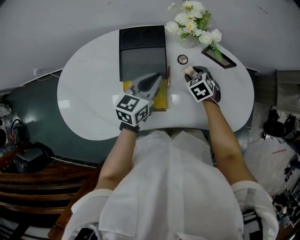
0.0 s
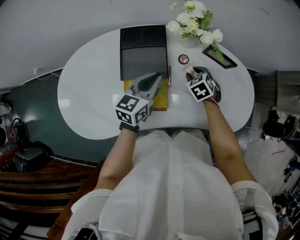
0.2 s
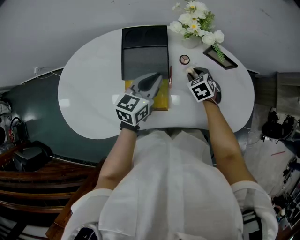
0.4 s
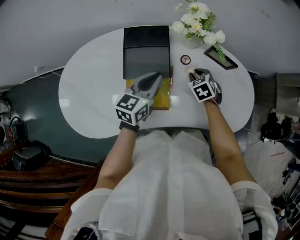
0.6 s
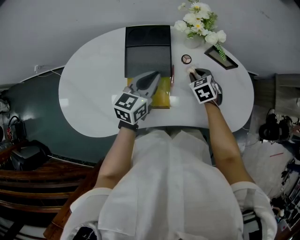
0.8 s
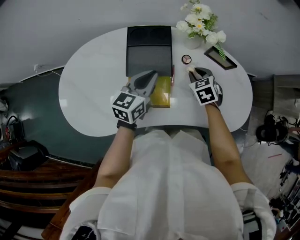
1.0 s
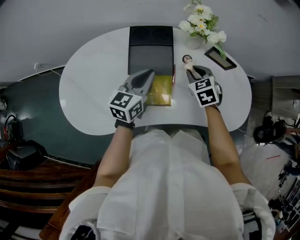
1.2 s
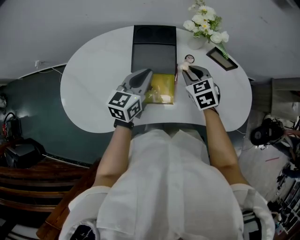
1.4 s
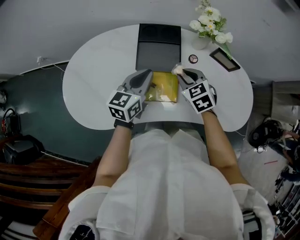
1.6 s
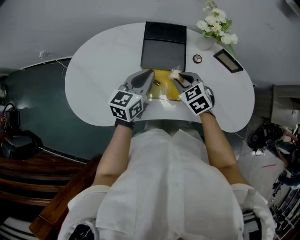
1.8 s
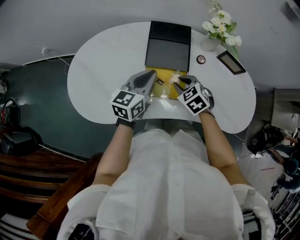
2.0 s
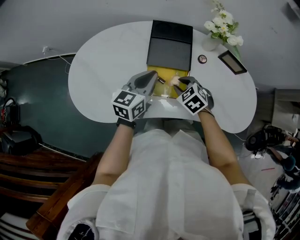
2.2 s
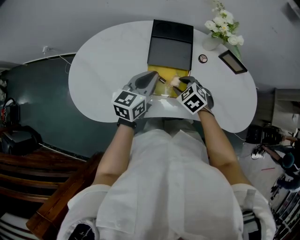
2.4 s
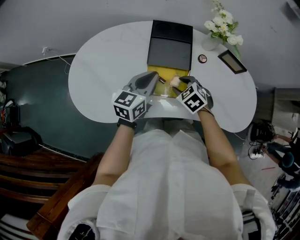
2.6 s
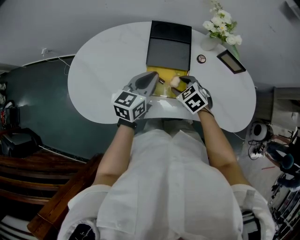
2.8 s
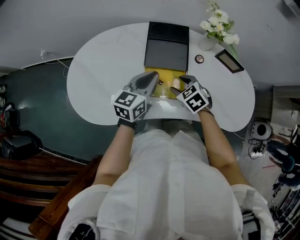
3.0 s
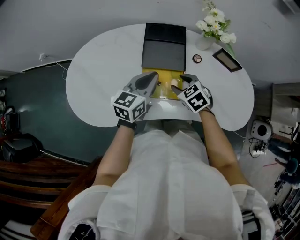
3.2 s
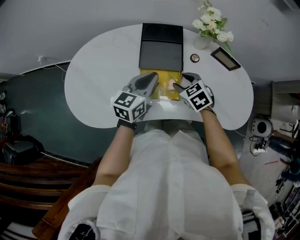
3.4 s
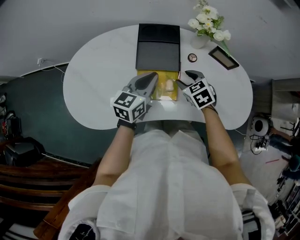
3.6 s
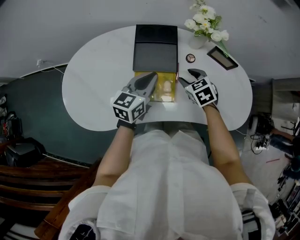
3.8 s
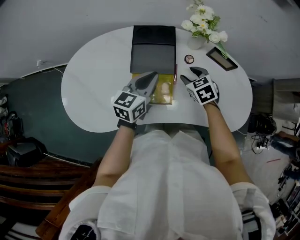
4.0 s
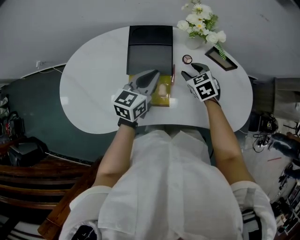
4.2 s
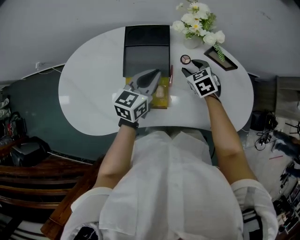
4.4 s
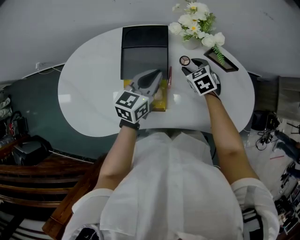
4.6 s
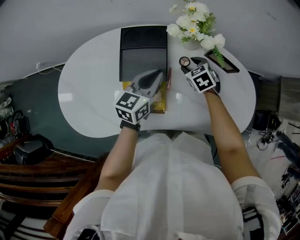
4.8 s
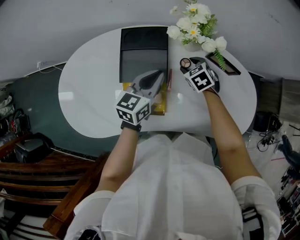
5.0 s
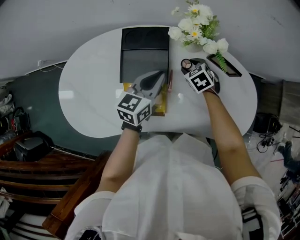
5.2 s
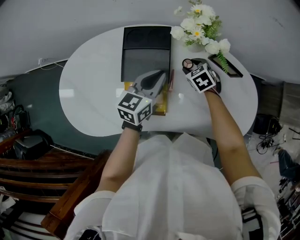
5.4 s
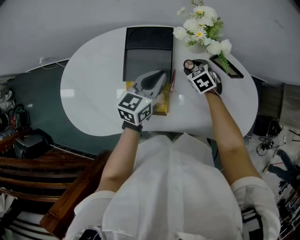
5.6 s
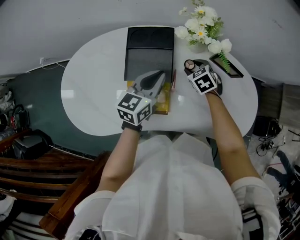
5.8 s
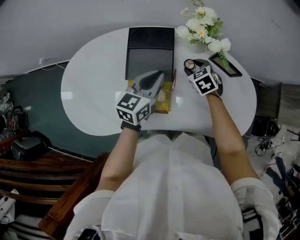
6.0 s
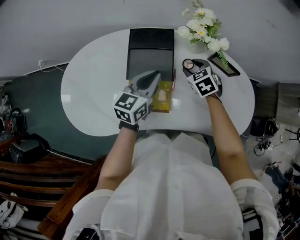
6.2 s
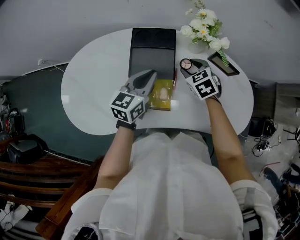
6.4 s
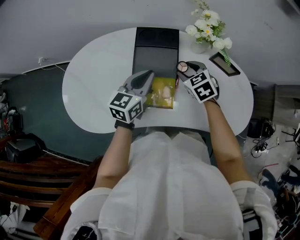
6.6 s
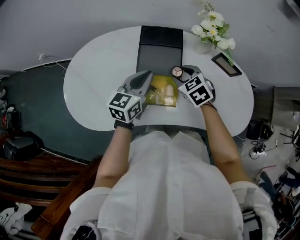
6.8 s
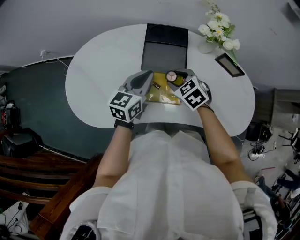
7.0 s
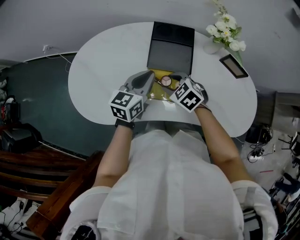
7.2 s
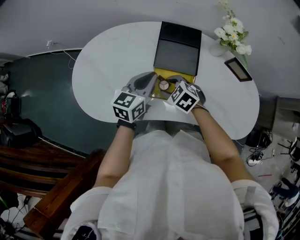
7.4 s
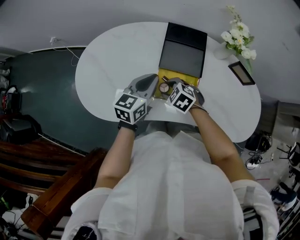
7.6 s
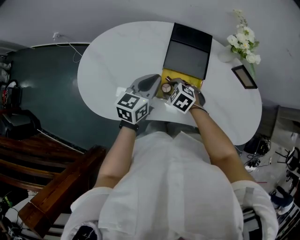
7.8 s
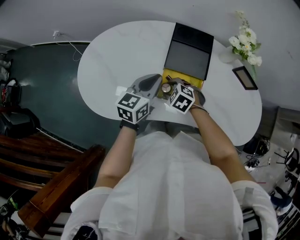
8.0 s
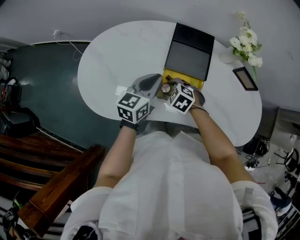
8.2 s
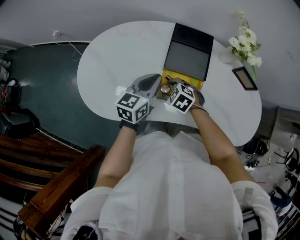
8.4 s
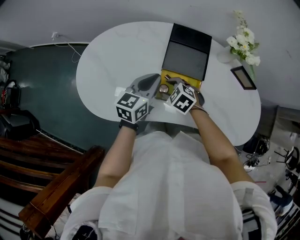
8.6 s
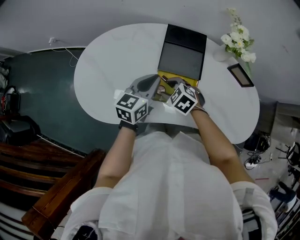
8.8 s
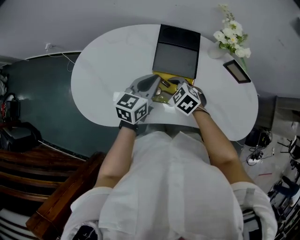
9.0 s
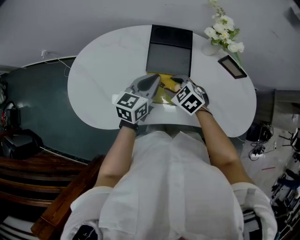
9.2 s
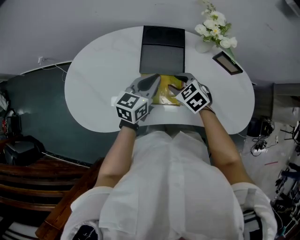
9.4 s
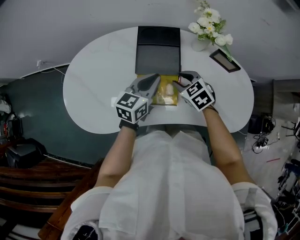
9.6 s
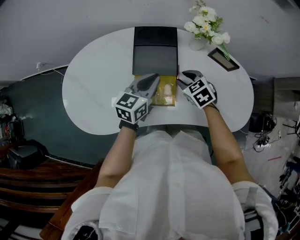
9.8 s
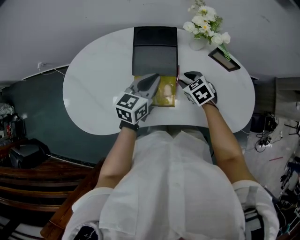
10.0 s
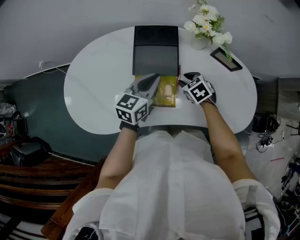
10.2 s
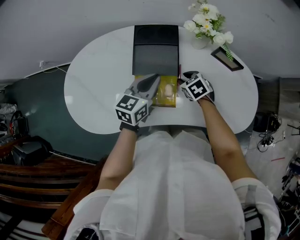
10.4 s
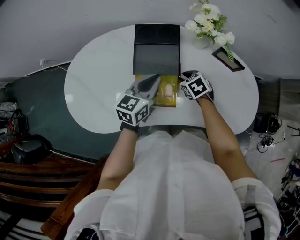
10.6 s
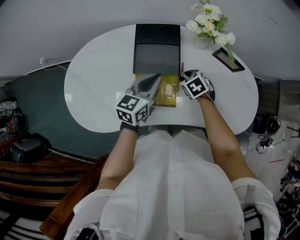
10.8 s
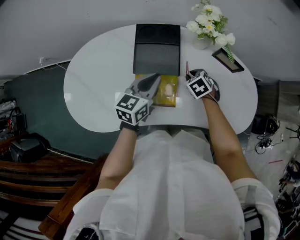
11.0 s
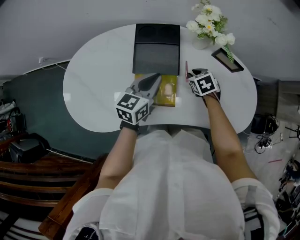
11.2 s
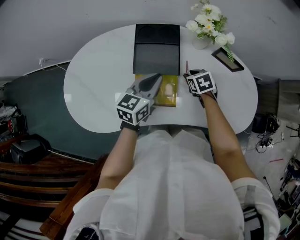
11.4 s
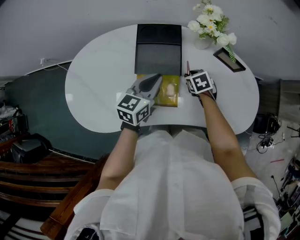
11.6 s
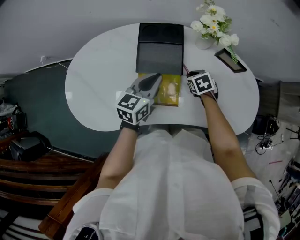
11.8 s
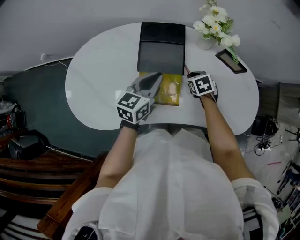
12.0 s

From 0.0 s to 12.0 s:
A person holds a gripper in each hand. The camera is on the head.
From 0.0 s to 1.6 s: The right gripper moves to the left, upward and backward, about 15 cm, and closes its fingers; the left gripper heads to the left and backward, covering some 10 cm.
From 1.6 s to 3.0 s: The right gripper goes about 5 cm downward and to the left, and opens its fingers.
From 3.0 s to 4.4 s: The right gripper heads to the right and forward, covering about 20 cm; the left gripper shifts roughly 10 cm to the right and forward.
From 6.0 s to 7.6 s: The right gripper shifts about 30 cm to the left and backward, and changes its angle by roughly 30 degrees. The left gripper shifts some 15 cm to the left.
From 7.6 s to 9.0 s: There are only small adjustments of the grippers.
From 9.0 s to 10.4 s: The right gripper goes approximately 15 cm to the right, and rotates about 30 degrees. The left gripper is displaced to the right by about 10 cm.
From 10.4 s to 12.0 s: The right gripper closes its fingers.

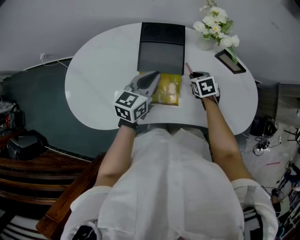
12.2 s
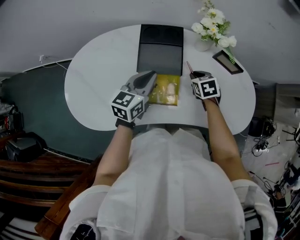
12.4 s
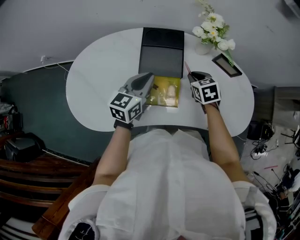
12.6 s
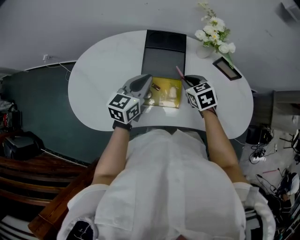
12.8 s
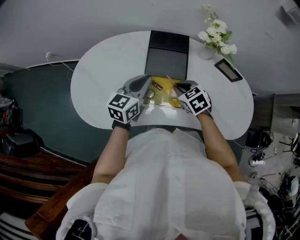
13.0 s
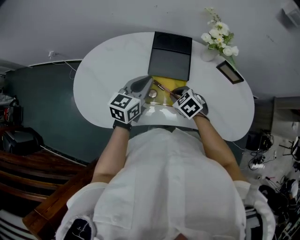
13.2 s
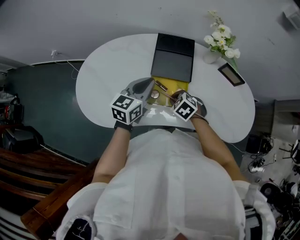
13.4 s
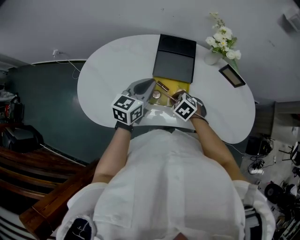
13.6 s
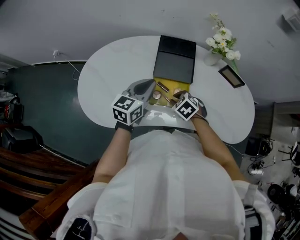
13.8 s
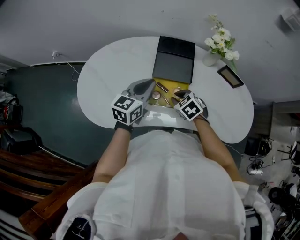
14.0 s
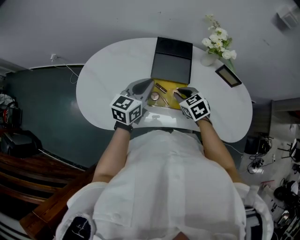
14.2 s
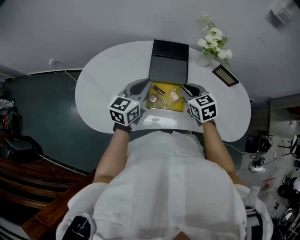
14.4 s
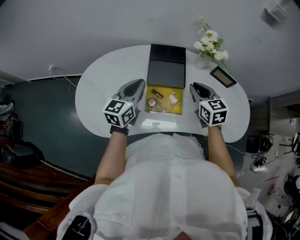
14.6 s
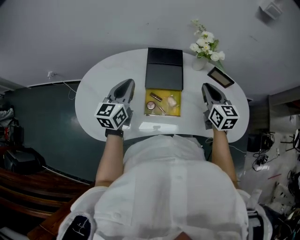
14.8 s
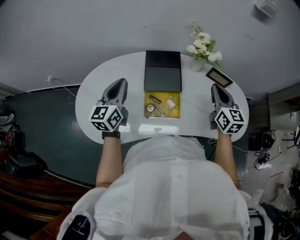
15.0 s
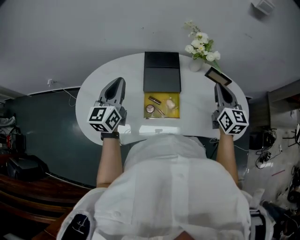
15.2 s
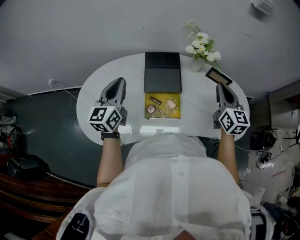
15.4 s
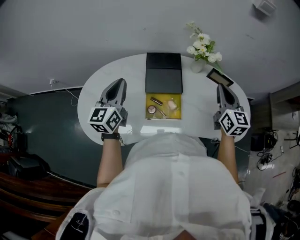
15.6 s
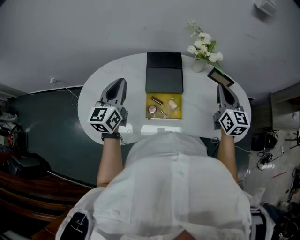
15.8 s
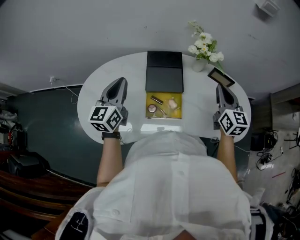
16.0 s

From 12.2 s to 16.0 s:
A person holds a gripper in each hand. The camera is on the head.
From 12.2 s to 13.4 s: The left gripper is displaced to the left by approximately 5 cm; the right gripper moves to the left and backward, some 20 cm, and swivels approximately 40 degrees.
From 13.4 s to 14.8 s: The right gripper is displaced upward and to the right by approximately 25 cm, and tilts its fingers approximately 50 degrees upward. Meanwhile the left gripper heads to the left and upward, covering approximately 10 cm.
From 14.8 s to 16.0 s: The right gripper is displaced to the right by about 5 cm.

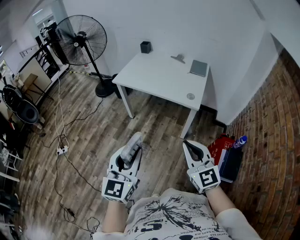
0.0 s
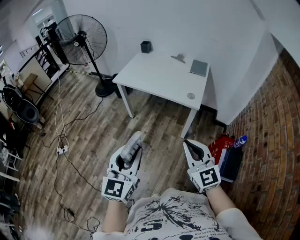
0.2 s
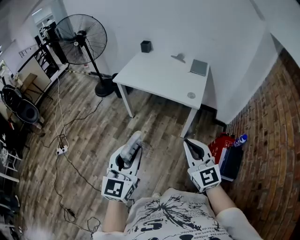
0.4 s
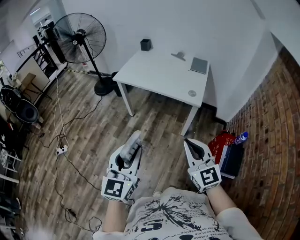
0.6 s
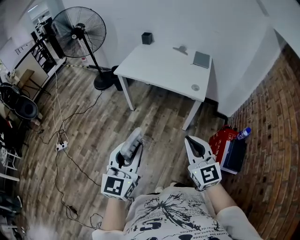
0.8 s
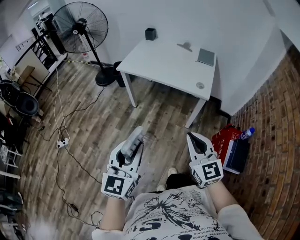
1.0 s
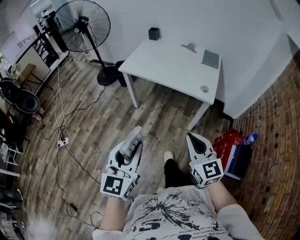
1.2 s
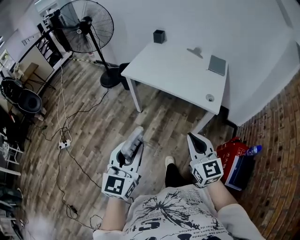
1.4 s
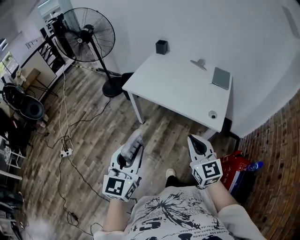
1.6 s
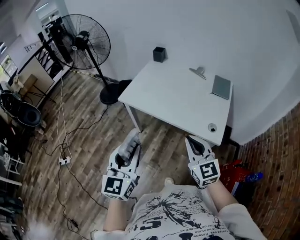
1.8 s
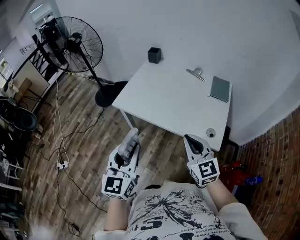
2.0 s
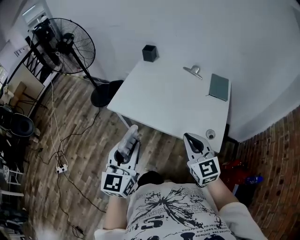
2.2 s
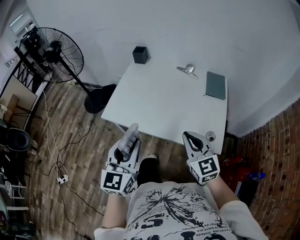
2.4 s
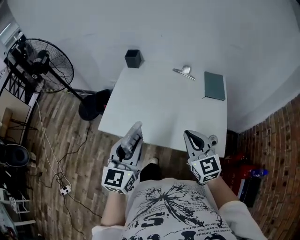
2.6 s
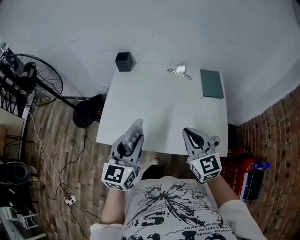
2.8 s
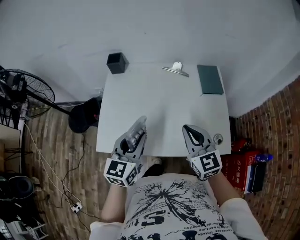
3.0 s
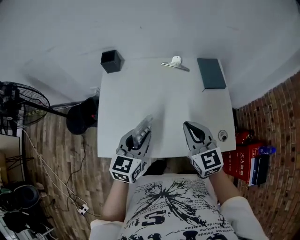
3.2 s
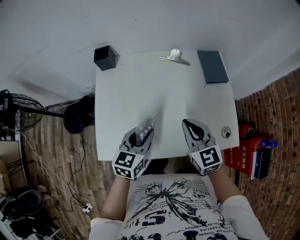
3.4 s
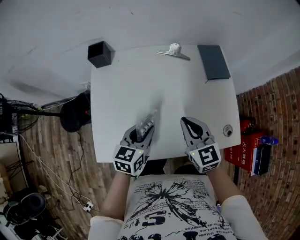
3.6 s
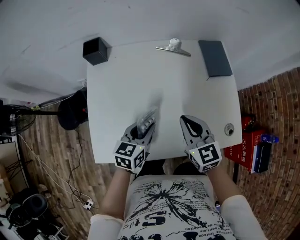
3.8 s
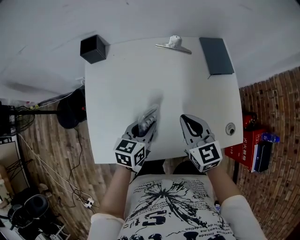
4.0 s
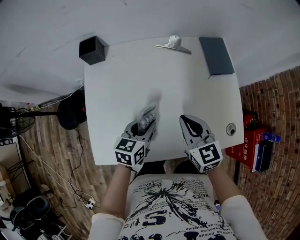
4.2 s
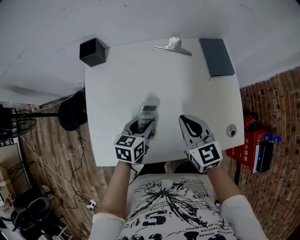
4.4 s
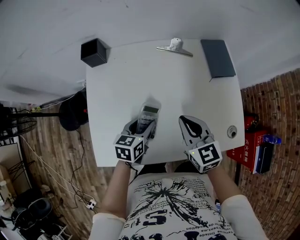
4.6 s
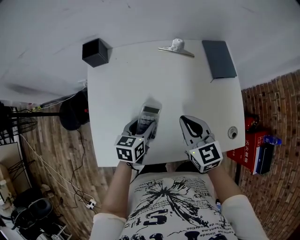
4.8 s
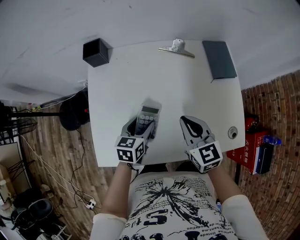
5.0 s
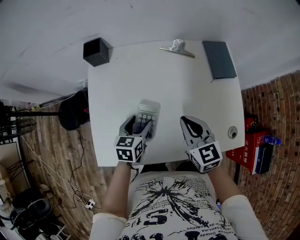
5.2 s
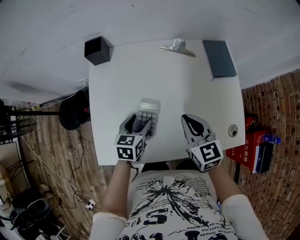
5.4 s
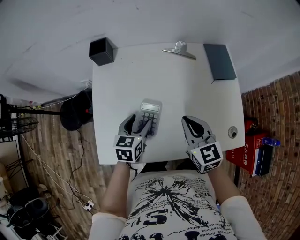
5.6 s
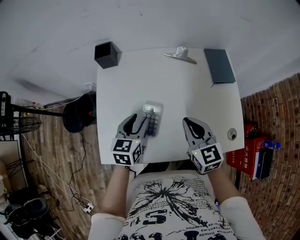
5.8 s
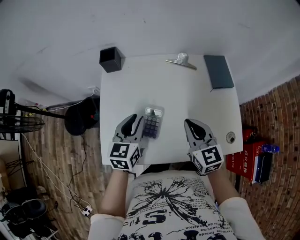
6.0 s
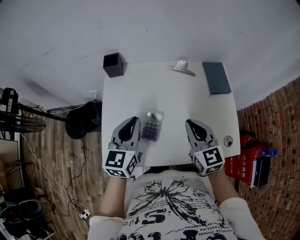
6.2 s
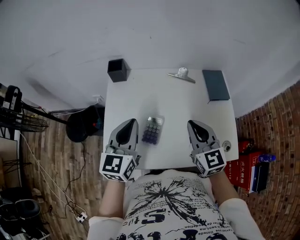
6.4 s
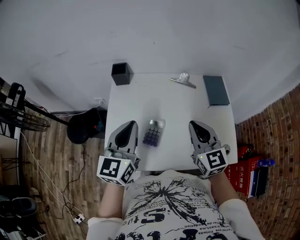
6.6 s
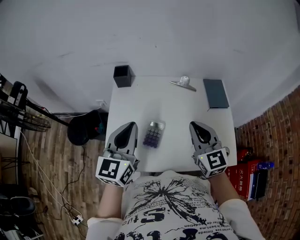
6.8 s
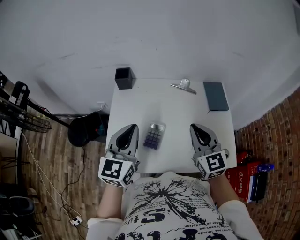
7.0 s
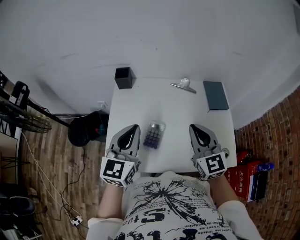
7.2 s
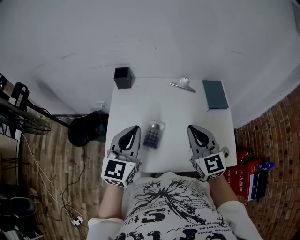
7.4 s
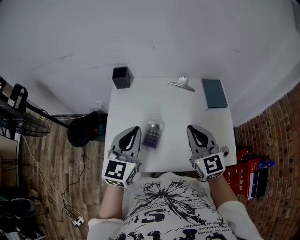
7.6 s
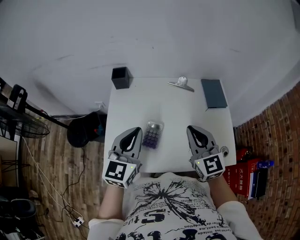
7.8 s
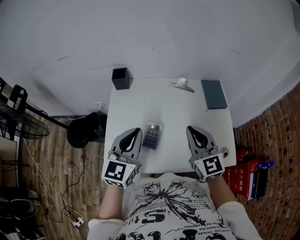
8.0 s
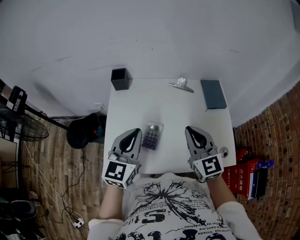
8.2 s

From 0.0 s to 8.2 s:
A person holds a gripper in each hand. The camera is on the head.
From 0.0 s to 1.6 s: Both grippers travel together forward, approximately 25 cm.
From 1.6 s to 3.2 s: The two grippers travel together, about 50 cm. The right gripper rotates approximately 30 degrees. The left gripper changes its angle by roughly 40 degrees.
From 3.2 s to 5.0 s: The right gripper is displaced downward and forward by approximately 10 cm. The left gripper is displaced downward and forward by some 20 cm, turns by approximately 20 degrees, and opens its fingers.
From 5.0 s to 6.6 s: The right gripper heads upward, covering roughly 15 cm, while the left gripper moves upward, roughly 25 cm, tips its fingers upward by roughly 30 degrees, and closes.
From 6.6 s to 8.2 s: There are only small adjustments of the grippers.
